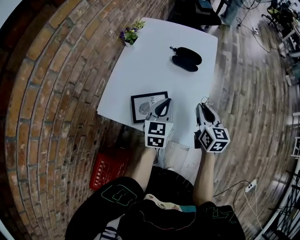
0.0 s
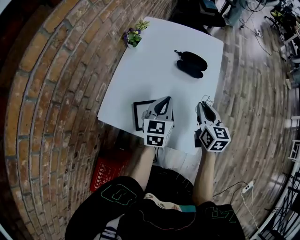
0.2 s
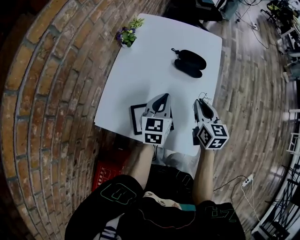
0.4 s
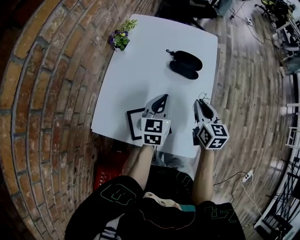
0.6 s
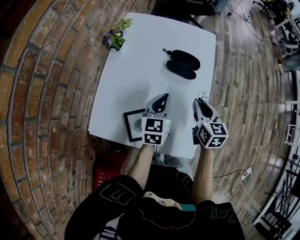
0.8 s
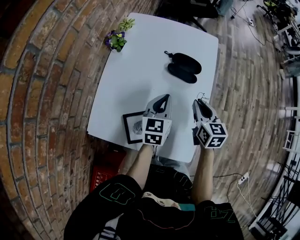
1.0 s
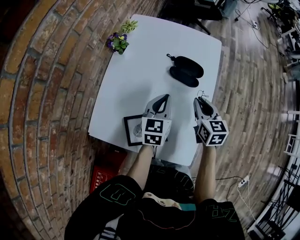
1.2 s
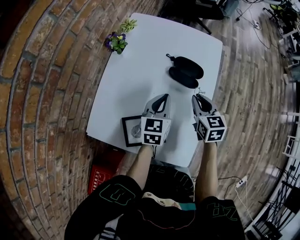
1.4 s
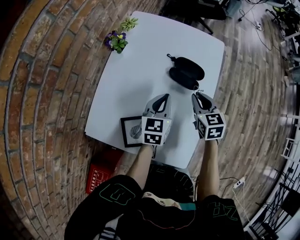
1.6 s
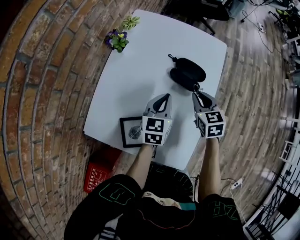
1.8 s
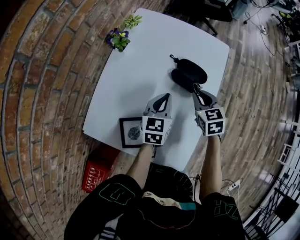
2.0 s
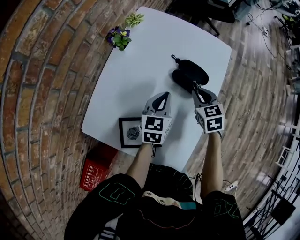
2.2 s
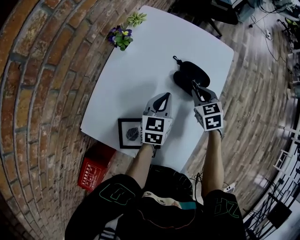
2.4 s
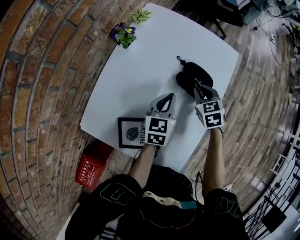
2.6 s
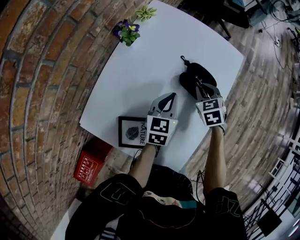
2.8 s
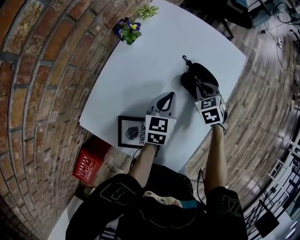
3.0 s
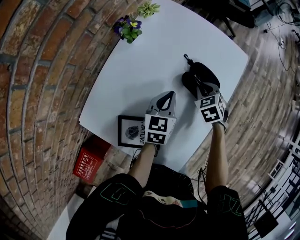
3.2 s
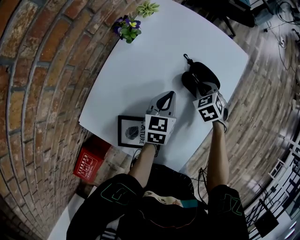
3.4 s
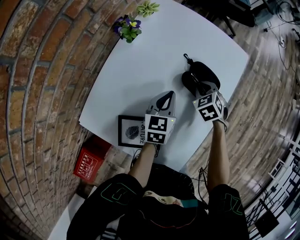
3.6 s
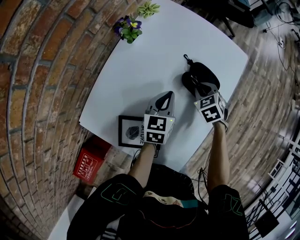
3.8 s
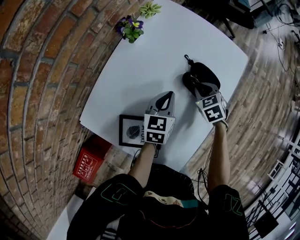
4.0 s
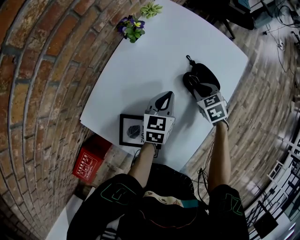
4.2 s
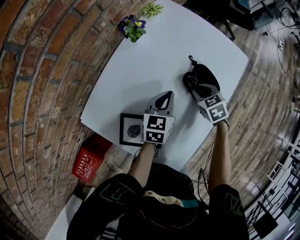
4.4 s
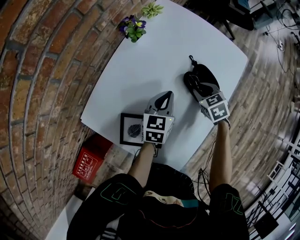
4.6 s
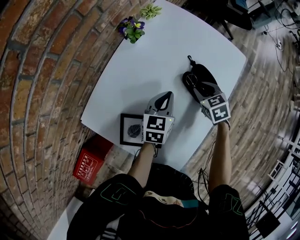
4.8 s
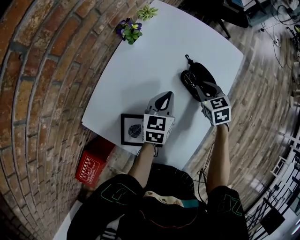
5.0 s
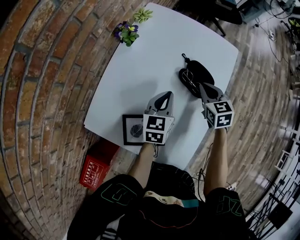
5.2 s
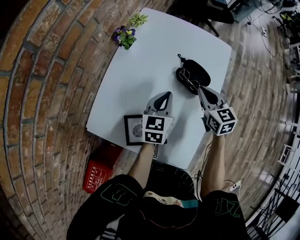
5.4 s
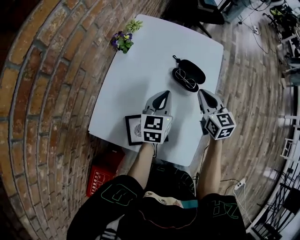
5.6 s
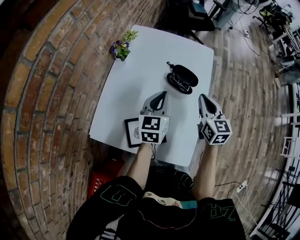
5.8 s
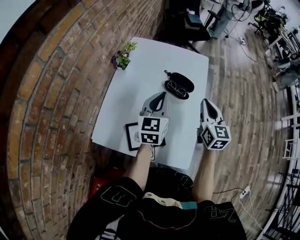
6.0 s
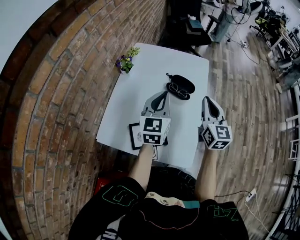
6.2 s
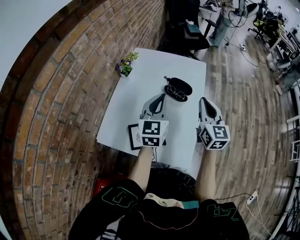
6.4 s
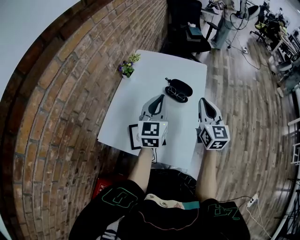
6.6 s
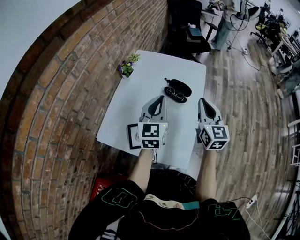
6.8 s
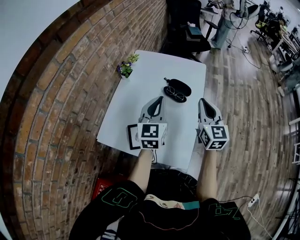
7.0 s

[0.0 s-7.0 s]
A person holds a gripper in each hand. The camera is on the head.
0.0 to 1.4 s: The two grippers go roughly 15 cm forward.
1.4 to 2.8 s: The left gripper is displaced forward by some 5 cm. Meanwhile the right gripper shifts about 15 cm forward and downward, and turns by approximately 30 degrees.
2.8 to 4.2 s: The grippers move only a little.
4.2 to 5.6 s: The right gripper goes roughly 20 cm upward and backward, tips its fingers upward by roughly 40 degrees, and closes up, while the left gripper goes approximately 10 cm upward.
5.6 to 7.0 s: The right gripper heads upward, backward and to the right, covering roughly 15 cm, and changes its angle by about 20 degrees. The left gripper shifts approximately 15 cm upward and backward, and turns by roughly 20 degrees.

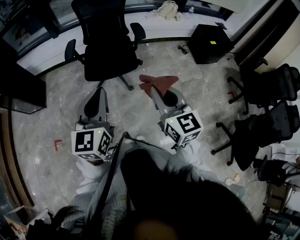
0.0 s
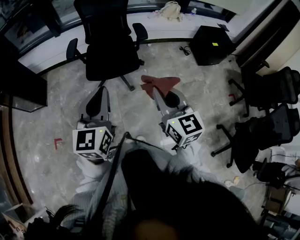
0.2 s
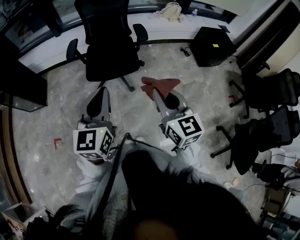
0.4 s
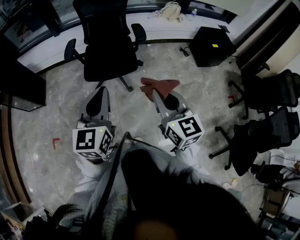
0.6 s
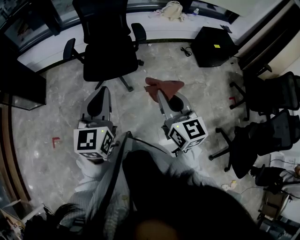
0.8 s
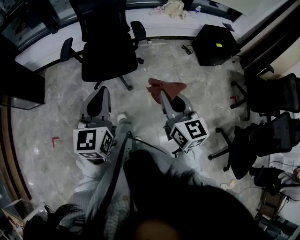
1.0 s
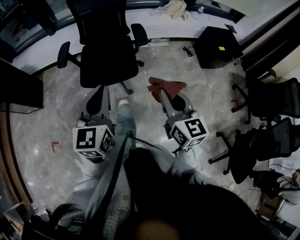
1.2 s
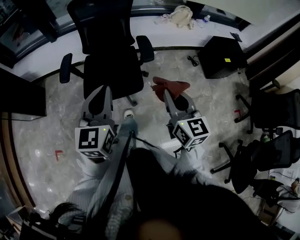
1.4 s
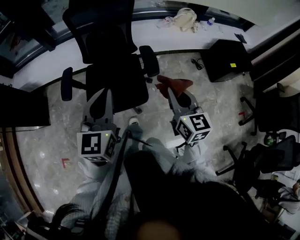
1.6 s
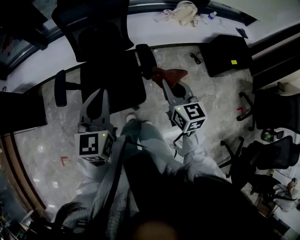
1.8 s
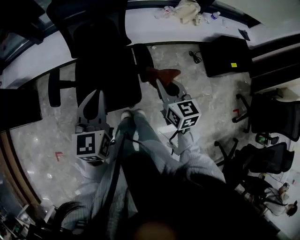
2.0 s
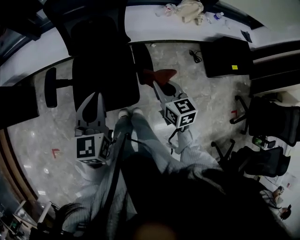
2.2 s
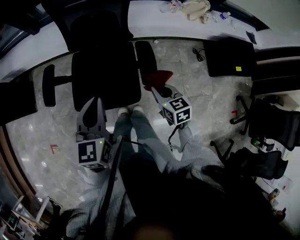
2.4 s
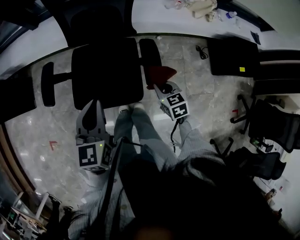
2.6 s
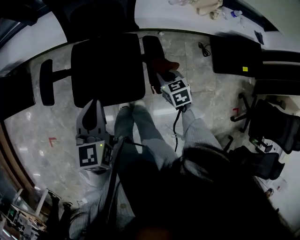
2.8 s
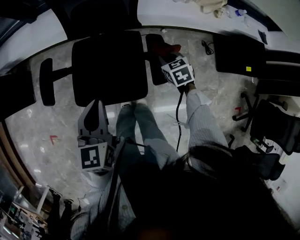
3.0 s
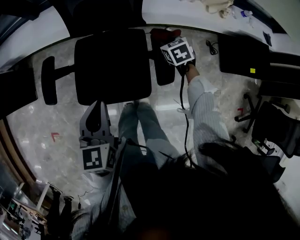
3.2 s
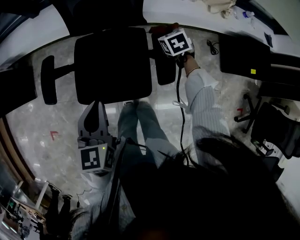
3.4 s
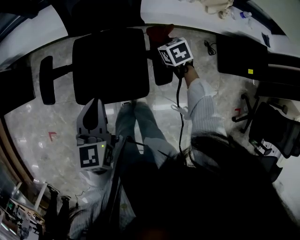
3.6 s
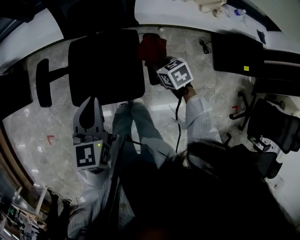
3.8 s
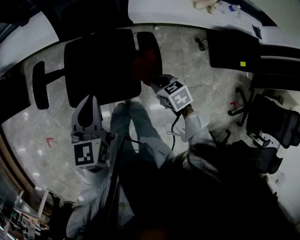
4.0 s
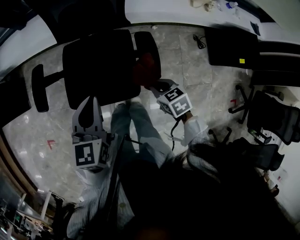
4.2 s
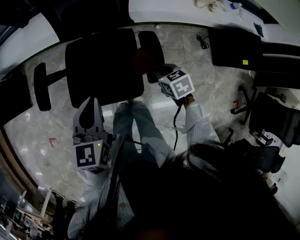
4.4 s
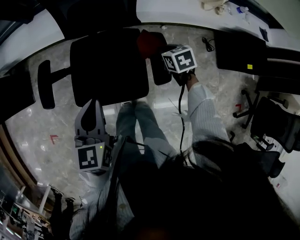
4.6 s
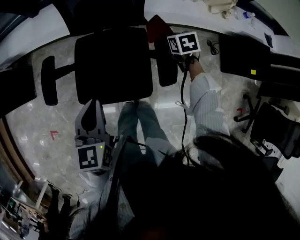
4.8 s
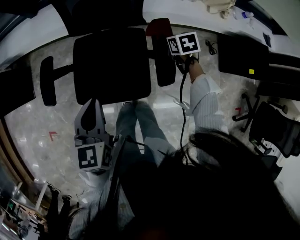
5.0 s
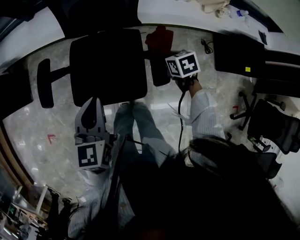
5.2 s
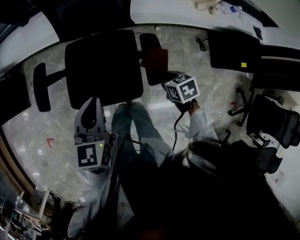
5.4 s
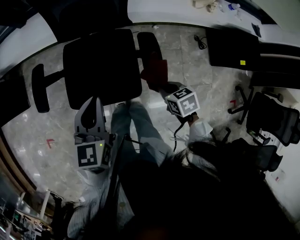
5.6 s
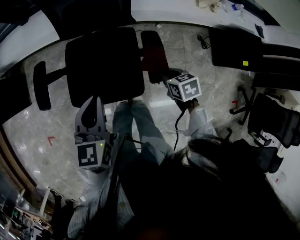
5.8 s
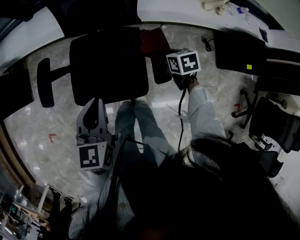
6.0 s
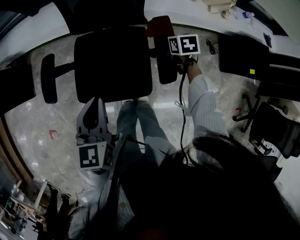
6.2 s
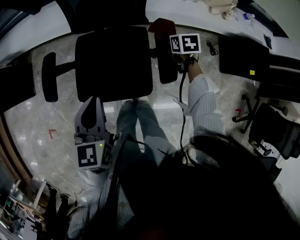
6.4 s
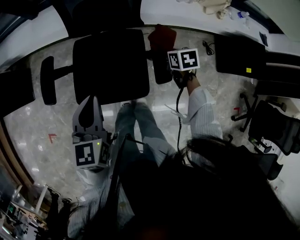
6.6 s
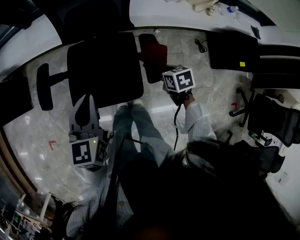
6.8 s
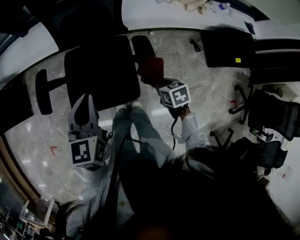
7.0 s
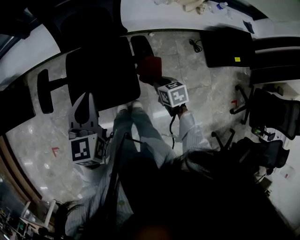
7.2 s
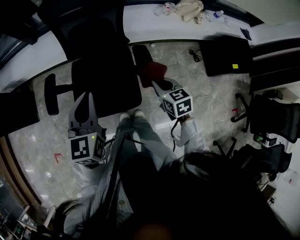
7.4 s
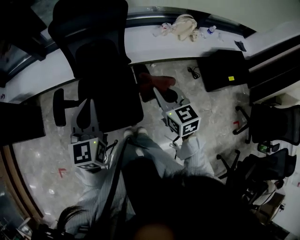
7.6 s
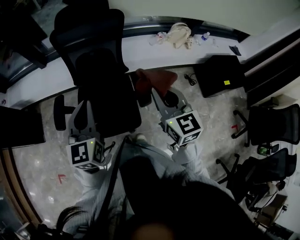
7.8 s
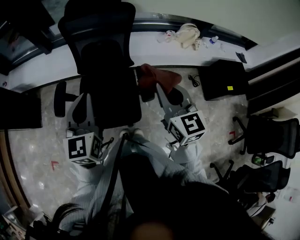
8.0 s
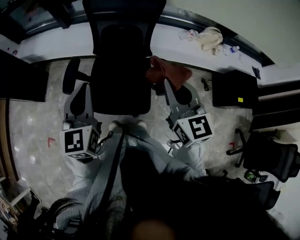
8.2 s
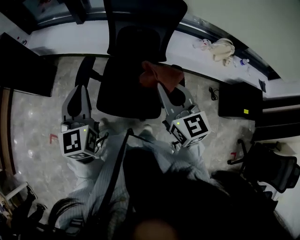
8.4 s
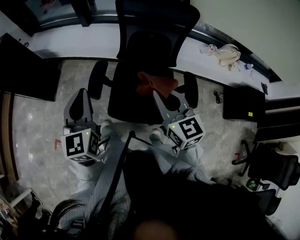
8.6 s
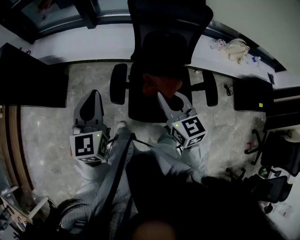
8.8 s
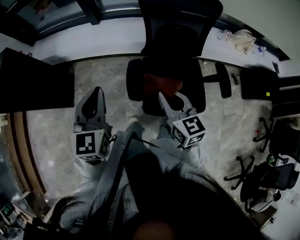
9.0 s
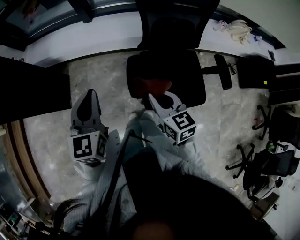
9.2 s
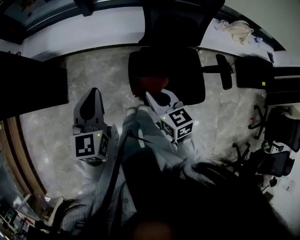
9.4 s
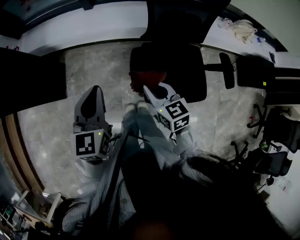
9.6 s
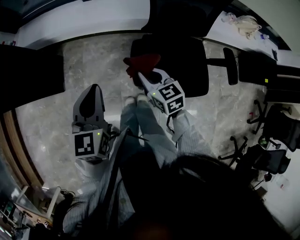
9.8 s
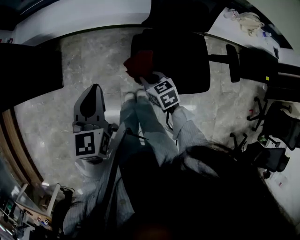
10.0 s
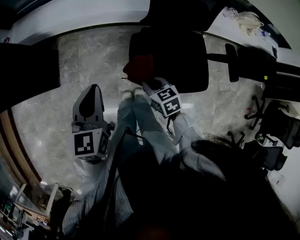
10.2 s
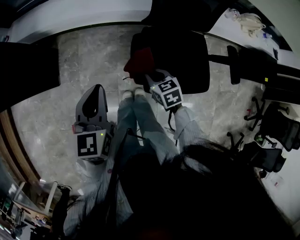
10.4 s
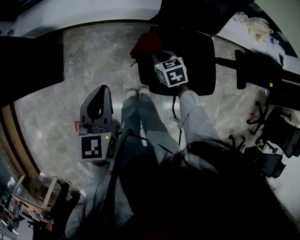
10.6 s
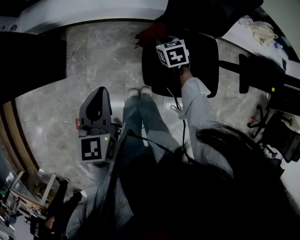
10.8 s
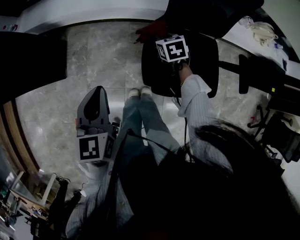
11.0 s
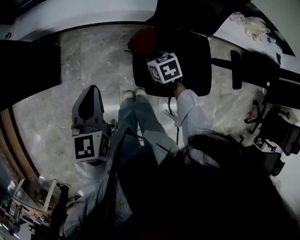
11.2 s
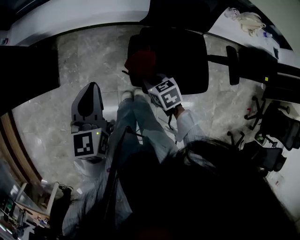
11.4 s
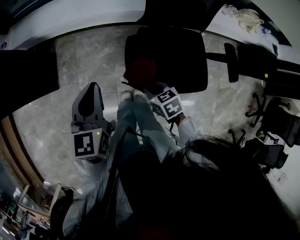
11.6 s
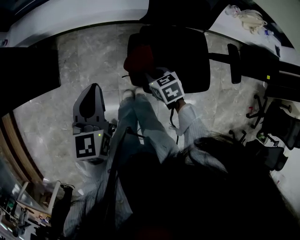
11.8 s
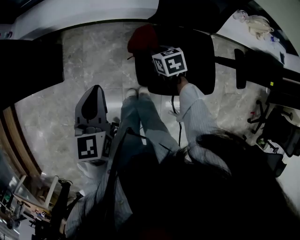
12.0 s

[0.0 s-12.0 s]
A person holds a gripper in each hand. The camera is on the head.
0.0 to 1.6 s: The two grippers travel together, forward, about 40 cm.
1.6 to 3.0 s: The right gripper travels downward and forward by roughly 40 cm, and tilts its fingers roughly 40 degrees downward. The left gripper is displaced downward and forward by about 25 cm, and swivels about 20 degrees.
3.0 to 4.4 s: The right gripper goes forward and backward, about 25 cm each way, reversing 2 times.
4.4 to 6.0 s: The right gripper swings forward and backward, some 25 cm each way, with 2 reversals.
6.0 to 7.6 s: The left gripper heads upward, covering about 15 cm, and rotates some 20 degrees, while the right gripper goes some 30 cm upward and backward, and points its fingers approximately 40 degrees further upward.
7.6 to 9.0 s: The two grippers travel together, to the left, roughly 50 cm.
9.0 to 10.4 s: The left gripper heads downward, covering roughly 15 cm; the right gripper heads downward, covering roughly 25 cm, and tilts its fingers some 30 degrees downward.
10.4 to 12.0 s: The right gripper goes forward and backward, some 20 cm each way, reversing 2 times.

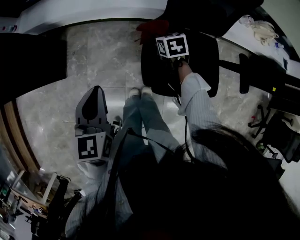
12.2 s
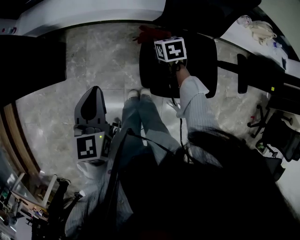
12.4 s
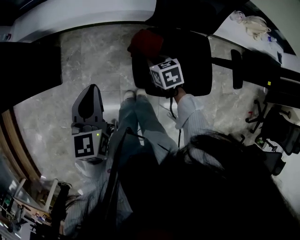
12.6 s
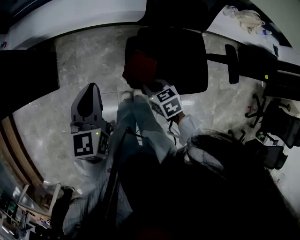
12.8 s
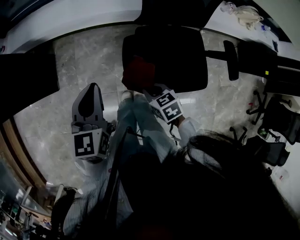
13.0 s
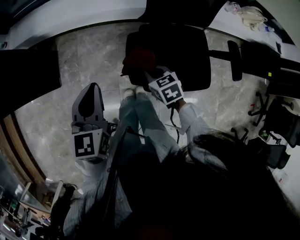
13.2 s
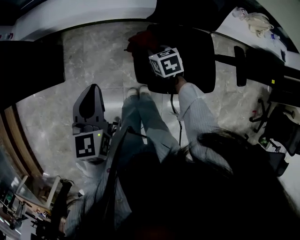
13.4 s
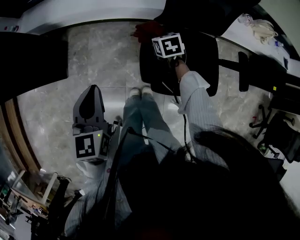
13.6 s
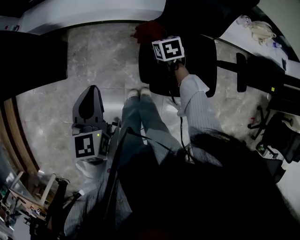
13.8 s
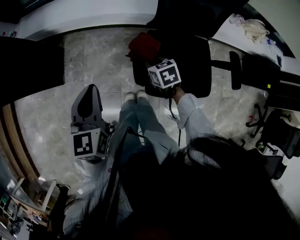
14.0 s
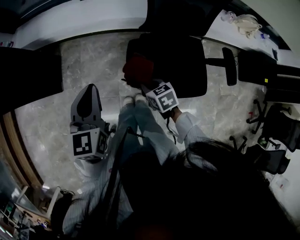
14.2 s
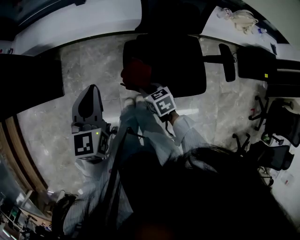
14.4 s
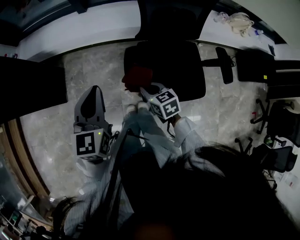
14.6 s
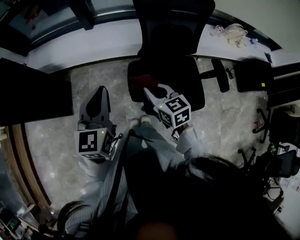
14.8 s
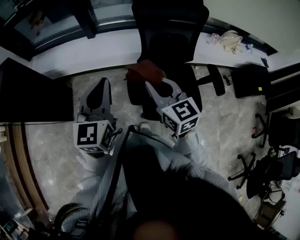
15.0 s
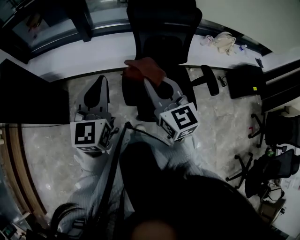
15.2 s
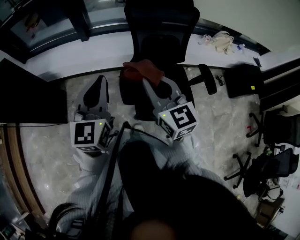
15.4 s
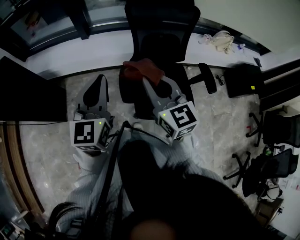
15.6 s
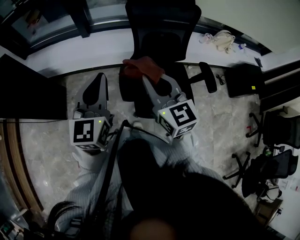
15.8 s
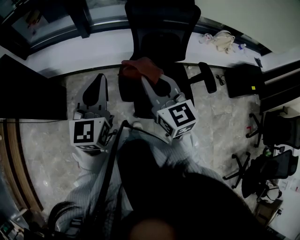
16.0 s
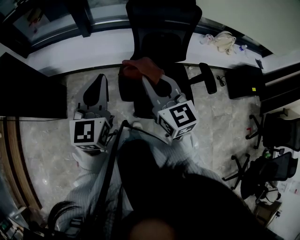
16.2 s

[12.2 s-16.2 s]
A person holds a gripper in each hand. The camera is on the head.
12.2 to 13.6 s: The right gripper moves about 20 cm backward and comes back.
13.6 to 14.8 s: The left gripper shifts some 15 cm upward and to the right; the right gripper shifts about 25 cm upward and backward, and rotates approximately 30 degrees.
14.8 to 16.2 s: The left gripper moves upward, about 10 cm, while the right gripper goes some 20 cm upward, and changes its angle by about 30 degrees.
